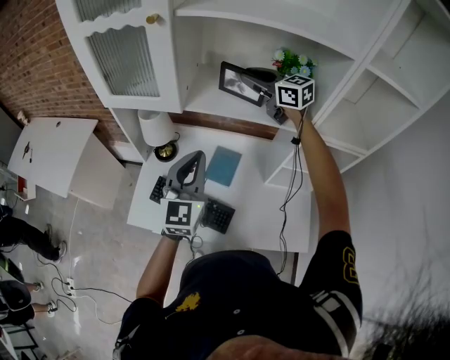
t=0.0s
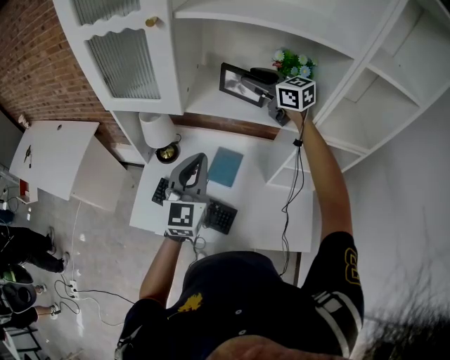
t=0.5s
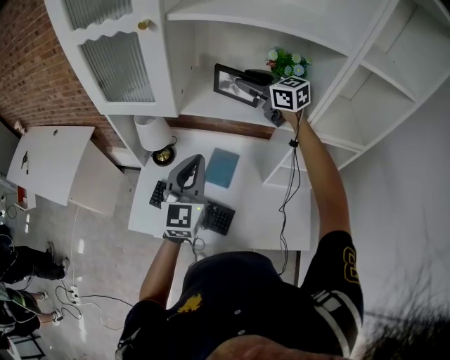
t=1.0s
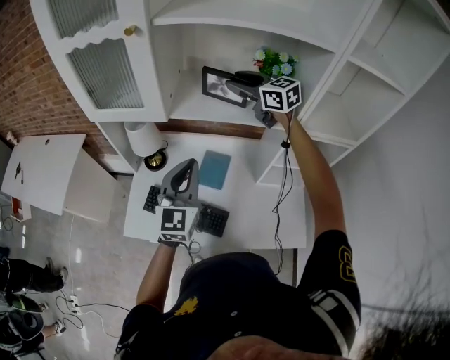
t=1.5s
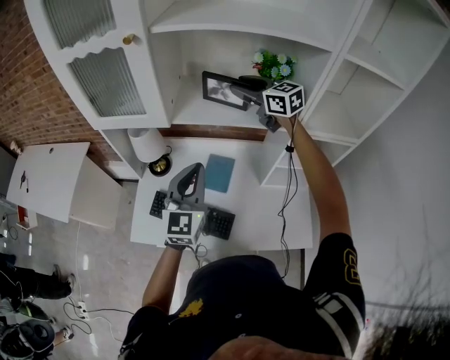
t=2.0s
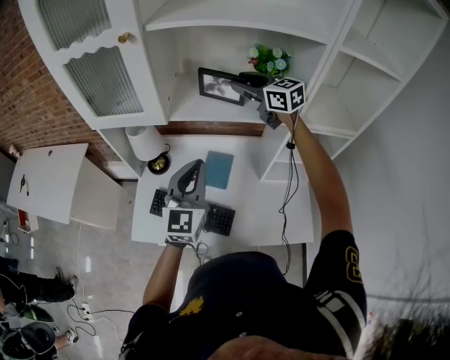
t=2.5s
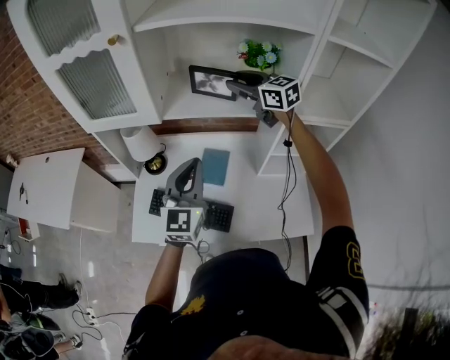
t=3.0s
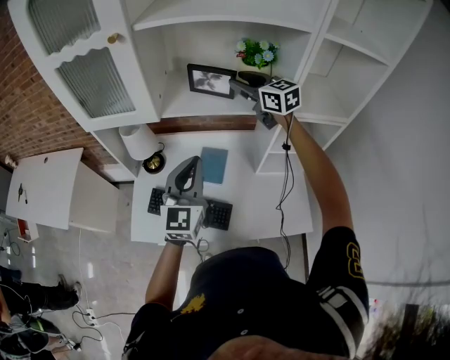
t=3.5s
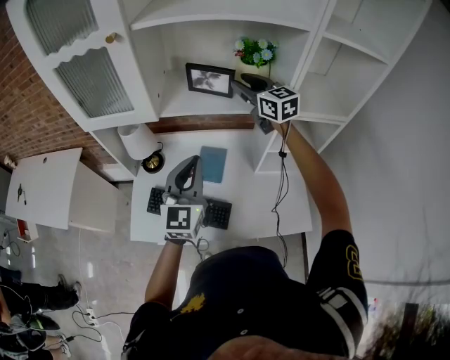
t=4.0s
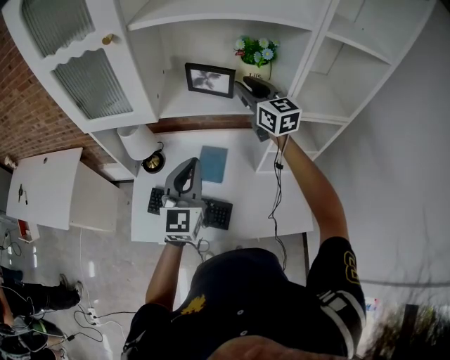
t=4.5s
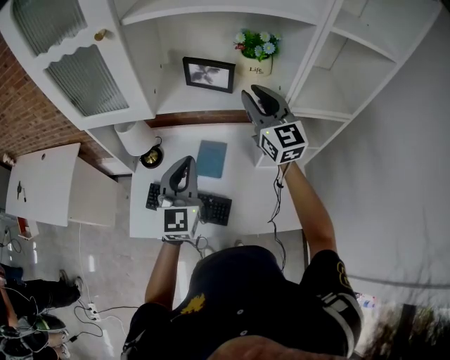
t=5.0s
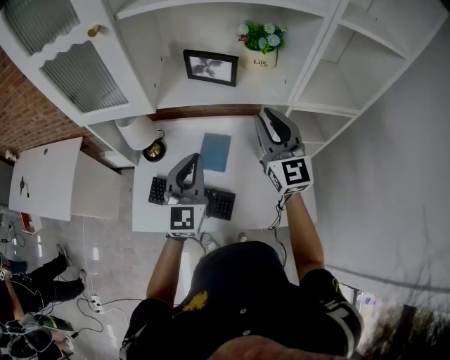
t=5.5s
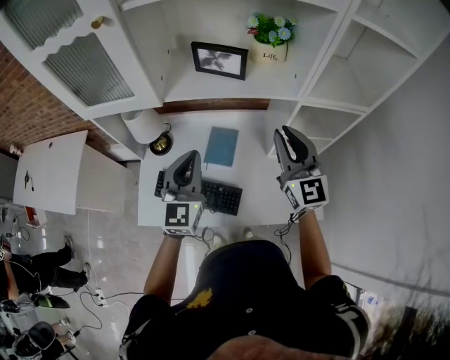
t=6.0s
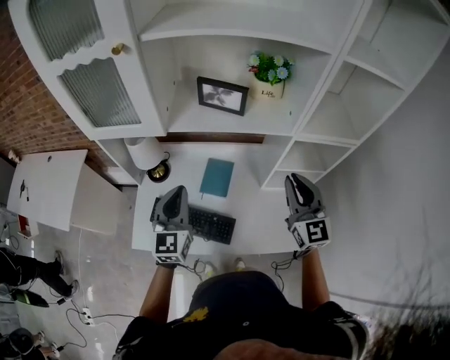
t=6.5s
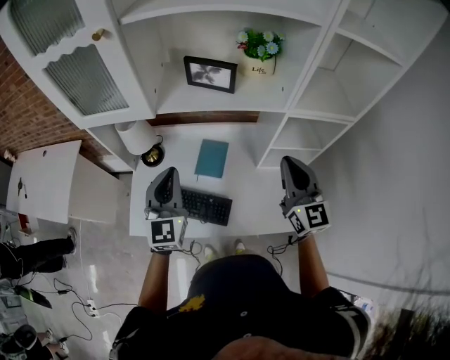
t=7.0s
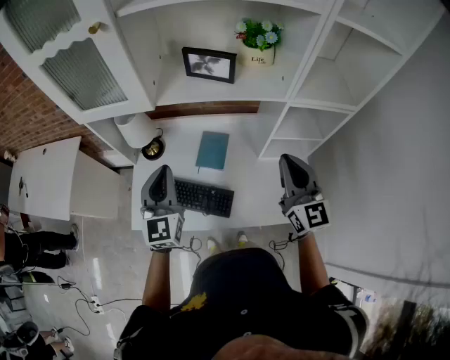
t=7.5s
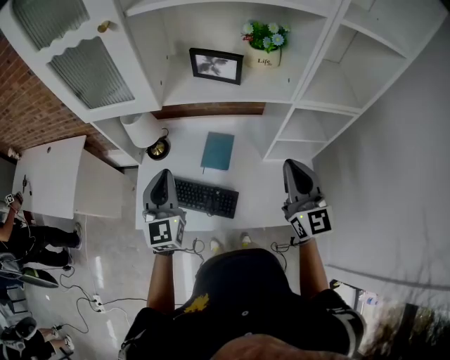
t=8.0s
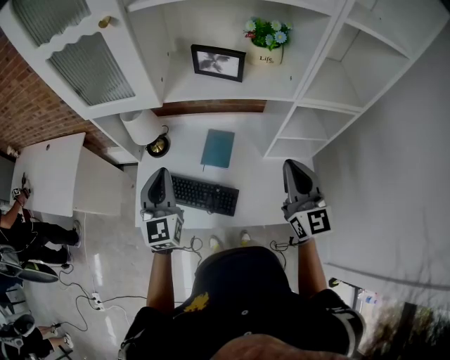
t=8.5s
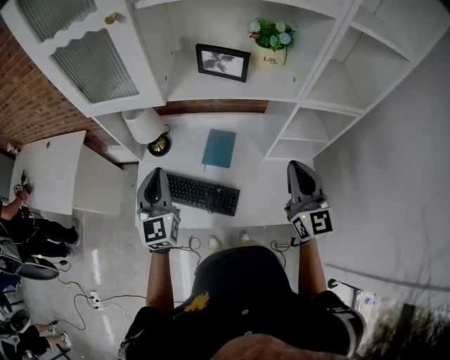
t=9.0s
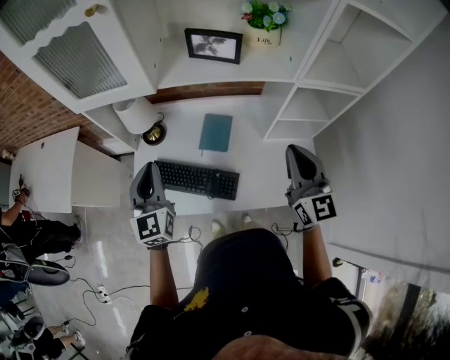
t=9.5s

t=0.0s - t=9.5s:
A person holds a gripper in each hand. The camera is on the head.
t=0.0s - t=2.0s: The grippers make only small movements.
t=2.0s - t=4.0s: The right gripper shifts by about 5 cm.
t=4.0s - t=5.5s: The right gripper is displaced backward by about 15 cm, and turns by roughly 20 degrees.
t=5.5s - t=7.5s: The left gripper goes some 10 cm to the left. Meanwhile the right gripper goes some 10 cm backward and downward.
t=7.5s - t=9.5s: The left gripper heads to the left, covering approximately 5 cm.

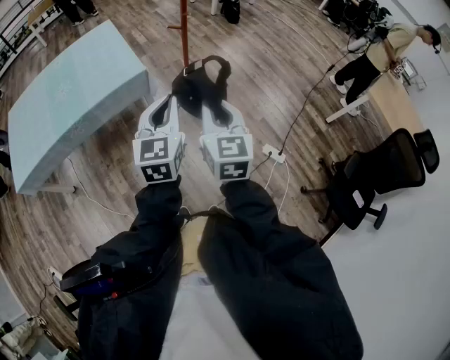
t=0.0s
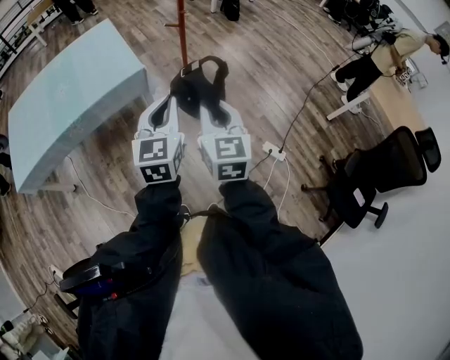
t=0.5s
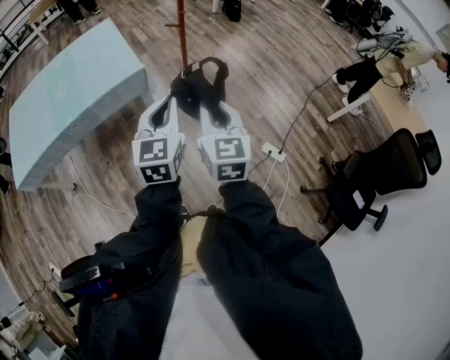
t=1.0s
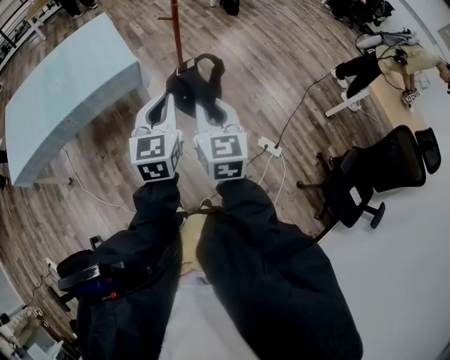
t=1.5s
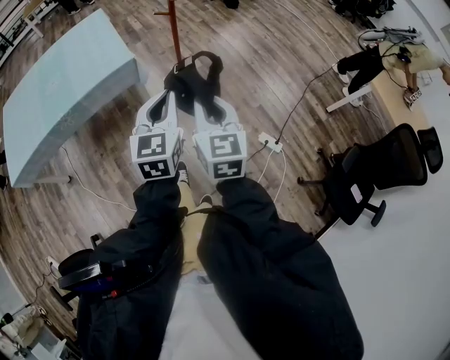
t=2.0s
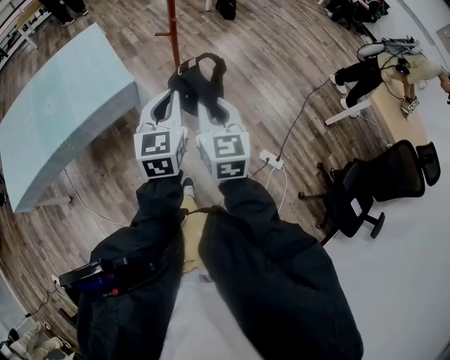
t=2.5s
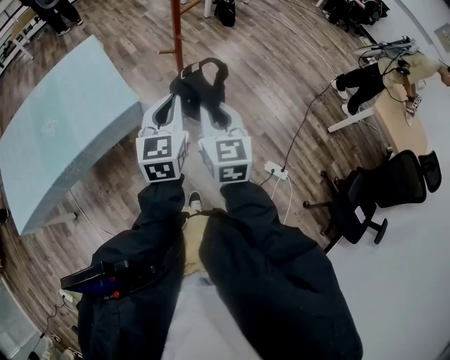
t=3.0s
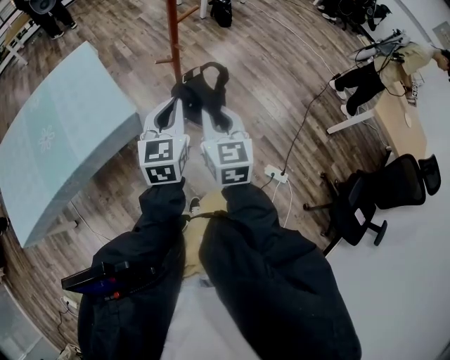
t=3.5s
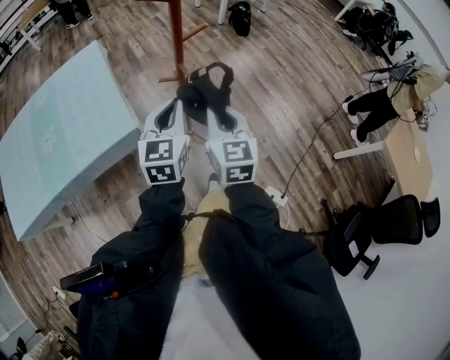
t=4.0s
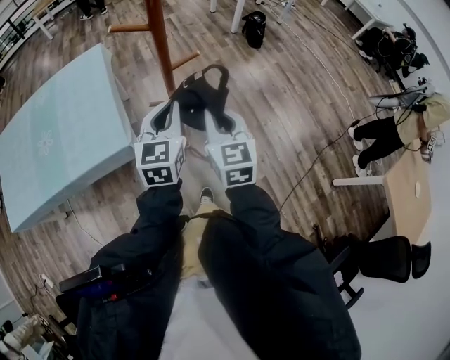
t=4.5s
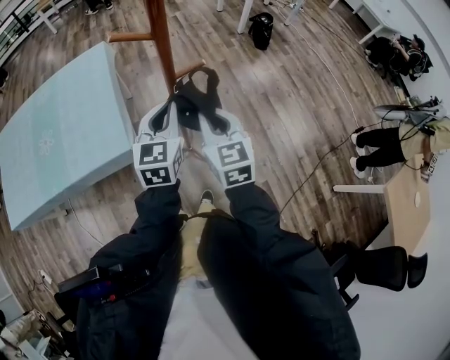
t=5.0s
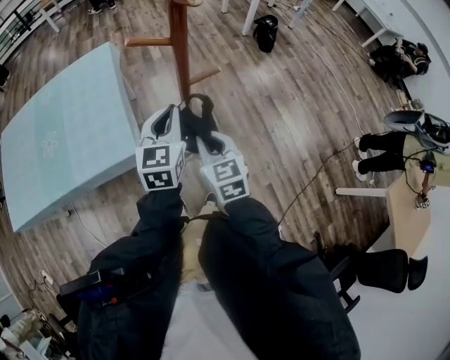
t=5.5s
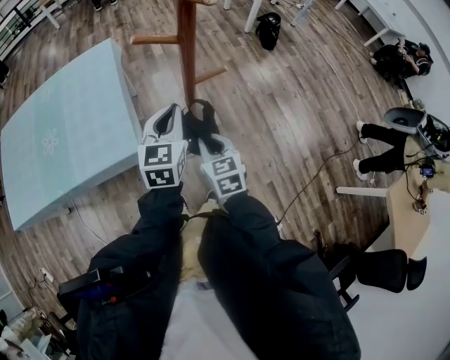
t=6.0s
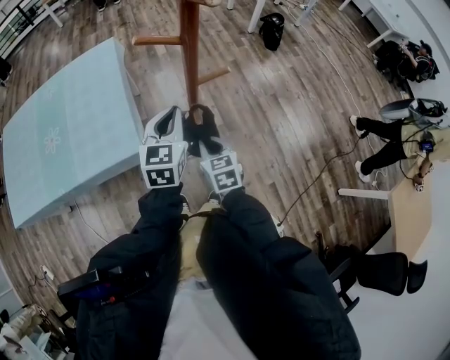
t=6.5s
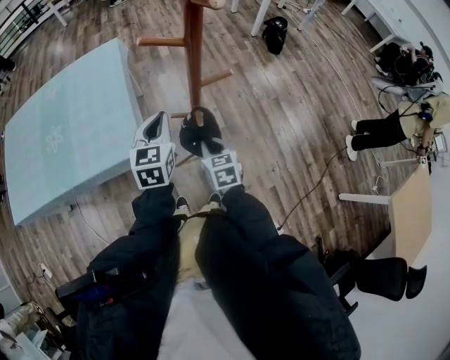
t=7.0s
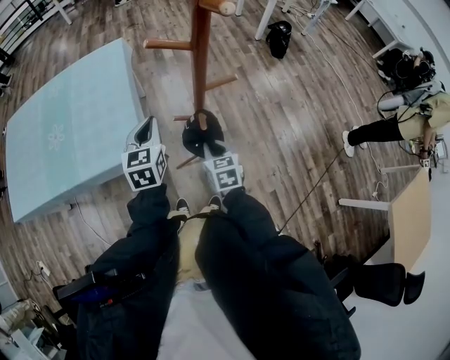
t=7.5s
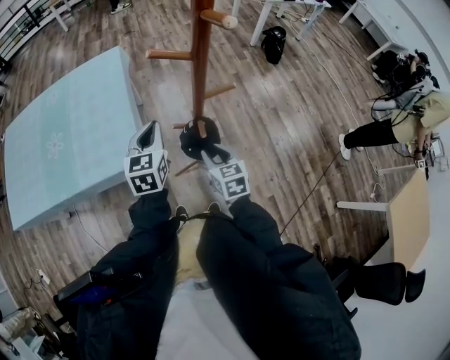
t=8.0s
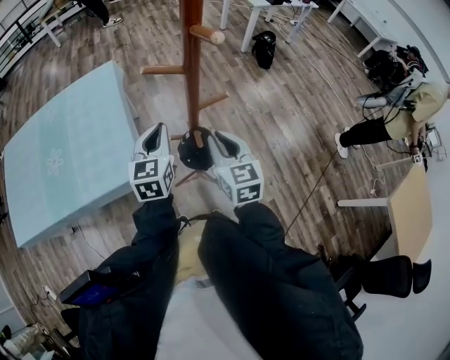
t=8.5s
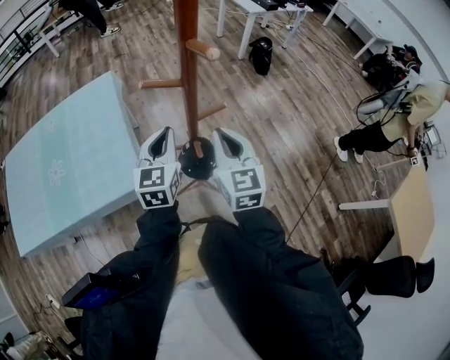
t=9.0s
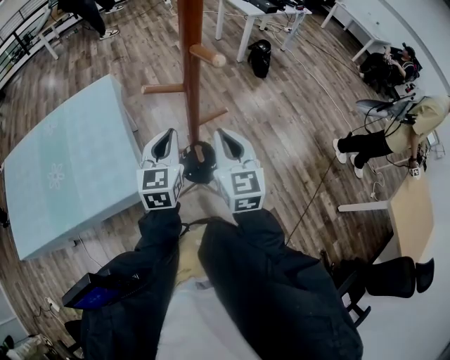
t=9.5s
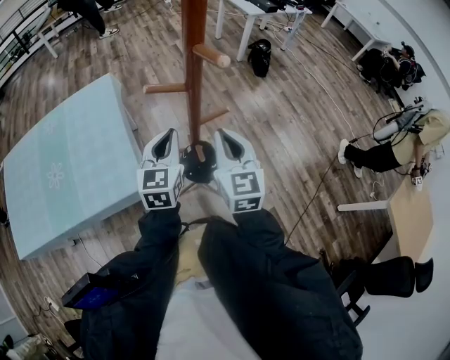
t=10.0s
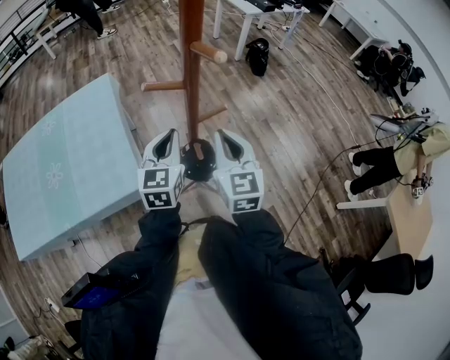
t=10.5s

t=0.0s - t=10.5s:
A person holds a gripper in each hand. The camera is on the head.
t=0.0s - t=2.0s: The left gripper travels to the right by approximately 5 cm; the right gripper ends up approximately 5 cm from where it was.
t=2.0s - t=4.0s: Both grippers travel together forward, roughly 40 cm.
t=4.0s - t=6.5s: The left gripper is displaced forward by roughly 15 cm. Meanwhile the right gripper shifts some 20 cm downward and forward, and rotates some 30 degrees.
t=6.5s - t=8.5s: The right gripper travels upward by some 15 cm.
t=8.5s - t=10.5s: The right gripper heads upward, covering some 5 cm.

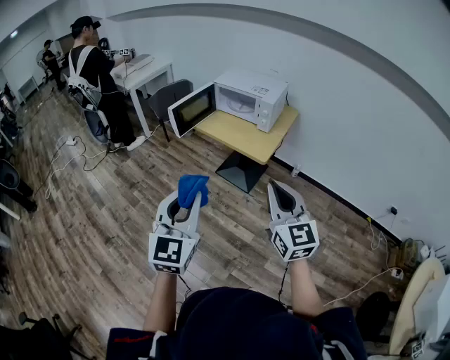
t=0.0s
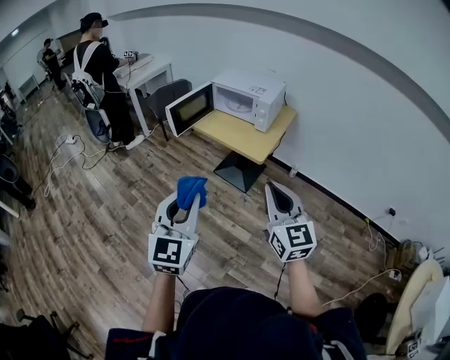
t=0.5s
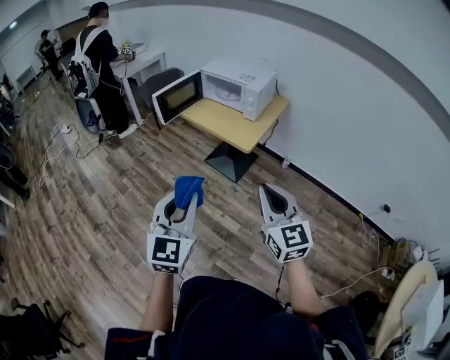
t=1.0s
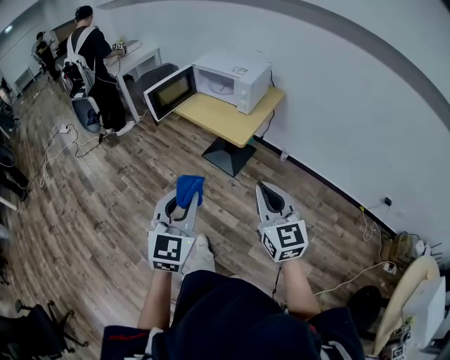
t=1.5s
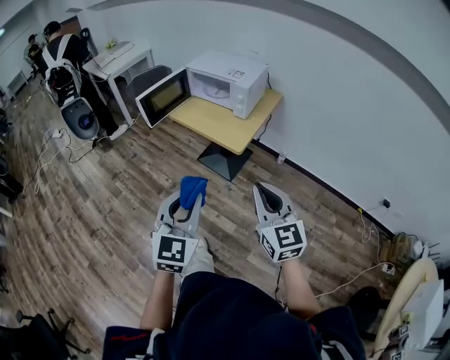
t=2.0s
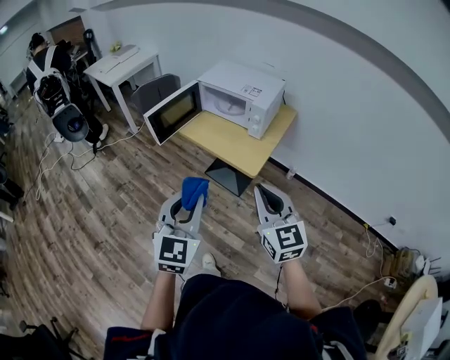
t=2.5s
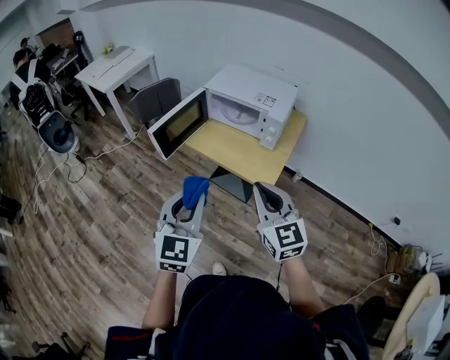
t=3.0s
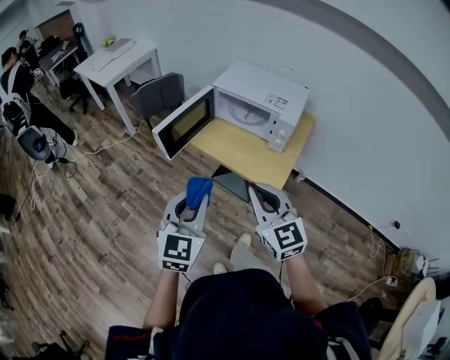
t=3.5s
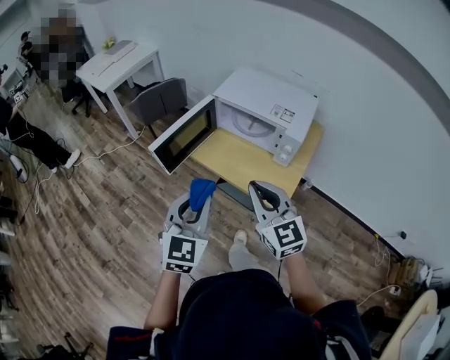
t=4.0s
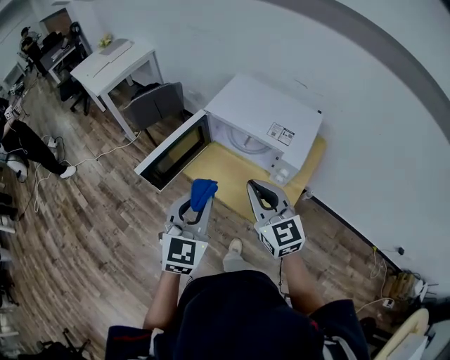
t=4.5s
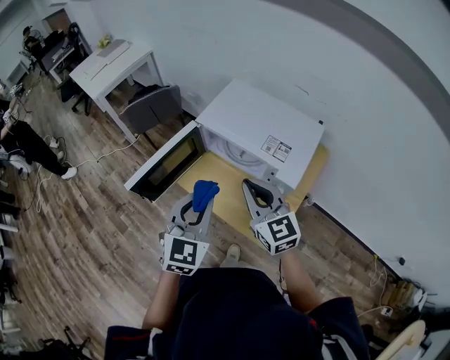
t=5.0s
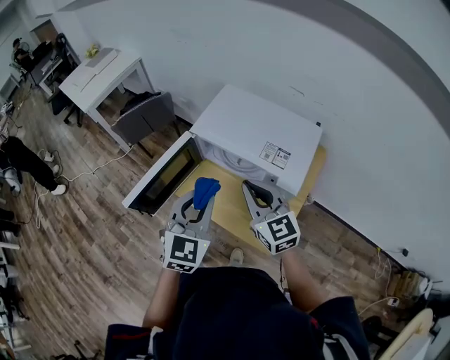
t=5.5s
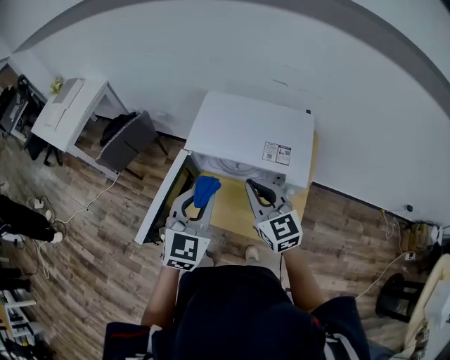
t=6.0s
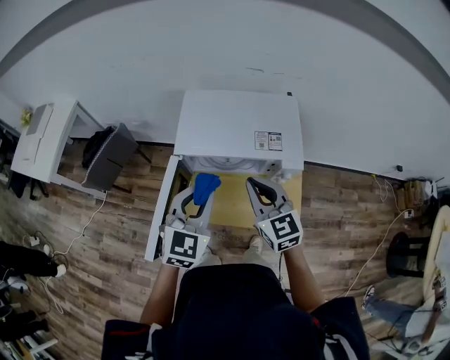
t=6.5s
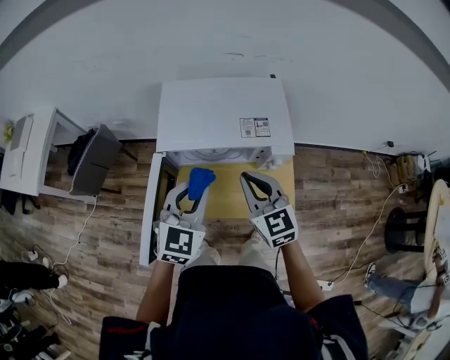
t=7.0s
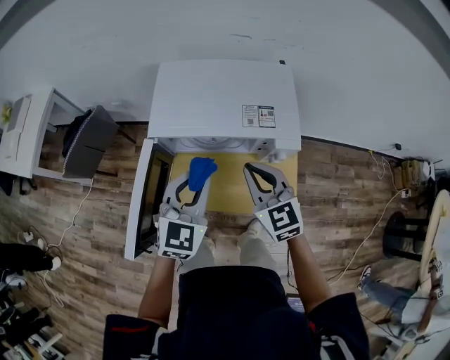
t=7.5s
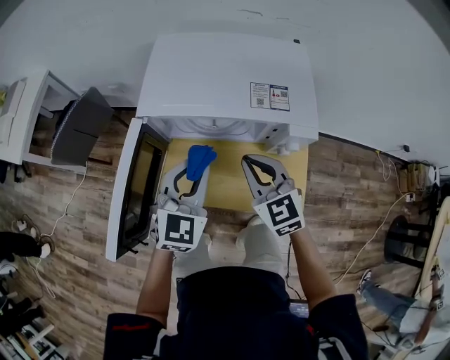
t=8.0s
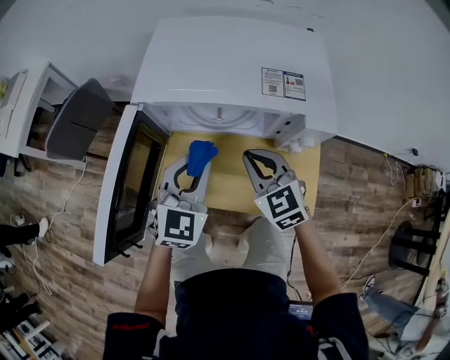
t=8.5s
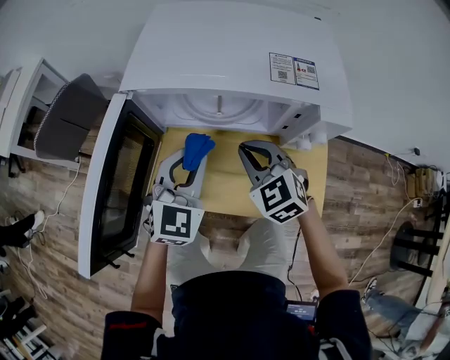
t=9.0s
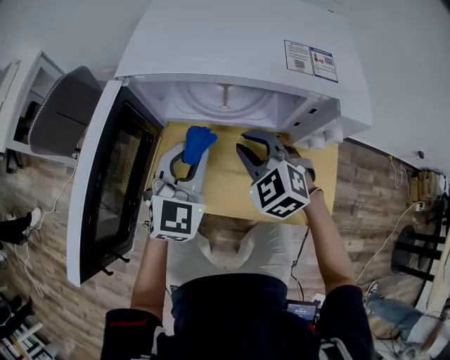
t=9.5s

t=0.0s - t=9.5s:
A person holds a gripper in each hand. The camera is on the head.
t=0.0s - t=2.0s: The two grippers go about 15 cm to the right and downward.
t=2.0s - t=4.0s: The two grippers travel together, forward and to the left, some 40 cm.
t=4.0s - t=5.5s: The left gripper heads forward and to the right, covering some 25 cm. The right gripper moves forward, approximately 25 cm.
t=5.5s - t=7.5s: The right gripper travels downward by approximately 5 cm, and rotates about 30 degrees, while the left gripper shifts by approximately 10 cm, and changes its angle by approximately 30 degrees.
t=7.5s - t=9.5s: Both grippers move downward, roughly 20 cm. The right gripper turns by some 40 degrees.
